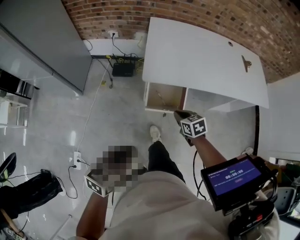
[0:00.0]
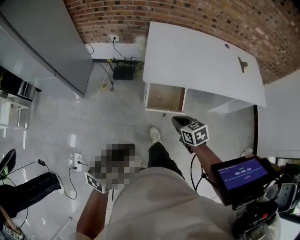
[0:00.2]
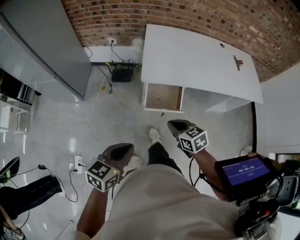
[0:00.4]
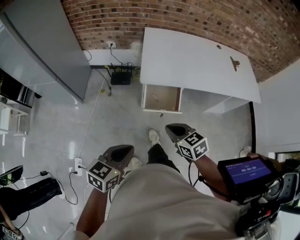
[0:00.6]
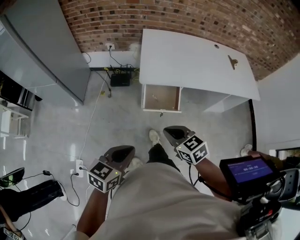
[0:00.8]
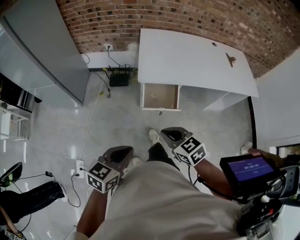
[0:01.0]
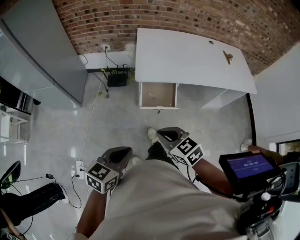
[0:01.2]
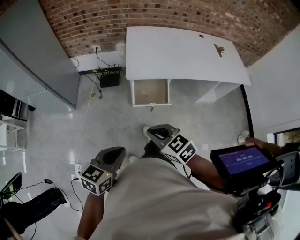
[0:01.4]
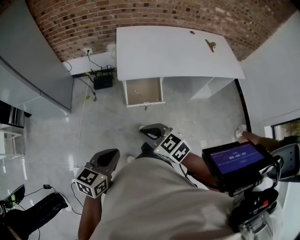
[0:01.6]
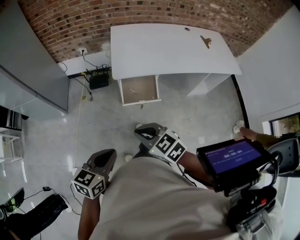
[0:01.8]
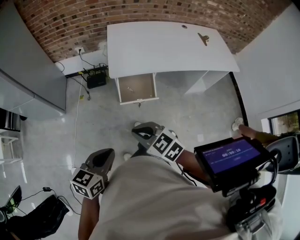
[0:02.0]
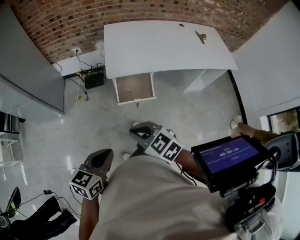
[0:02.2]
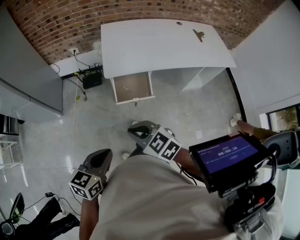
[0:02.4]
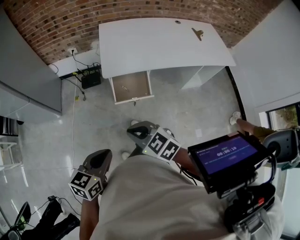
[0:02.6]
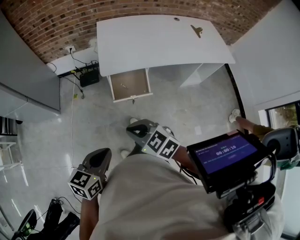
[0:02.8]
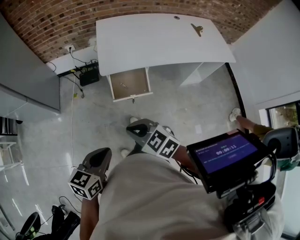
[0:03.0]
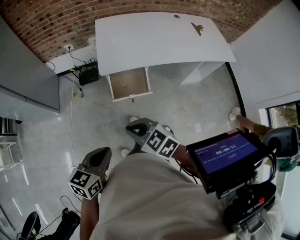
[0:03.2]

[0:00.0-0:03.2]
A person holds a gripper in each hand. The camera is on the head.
0:00.0 to 0:01.6: The left gripper travels backward by approximately 10 cm, while the right gripper moves backward, upward and to the left, approximately 30 cm, and rotates some 20 degrees.
0:01.6 to 0:03.2: The grippers stay close to where they were, moving slightly.

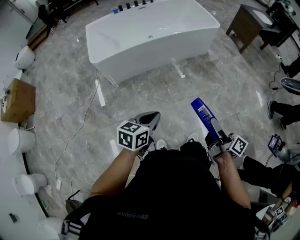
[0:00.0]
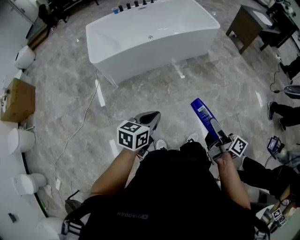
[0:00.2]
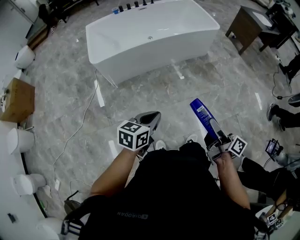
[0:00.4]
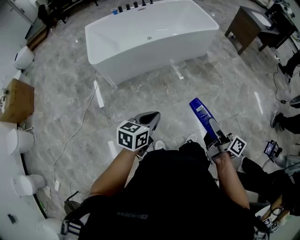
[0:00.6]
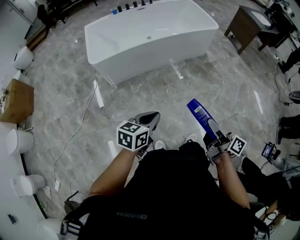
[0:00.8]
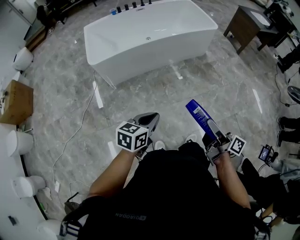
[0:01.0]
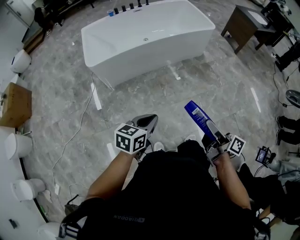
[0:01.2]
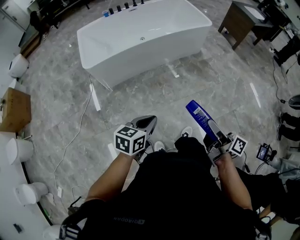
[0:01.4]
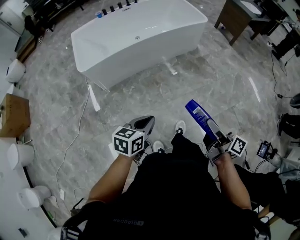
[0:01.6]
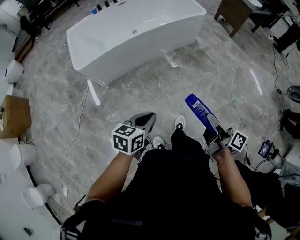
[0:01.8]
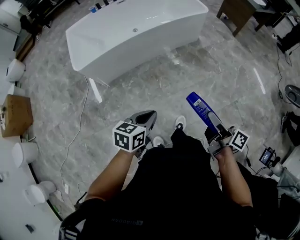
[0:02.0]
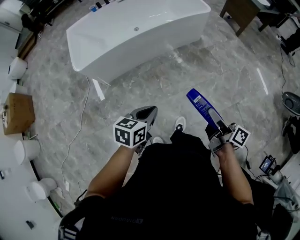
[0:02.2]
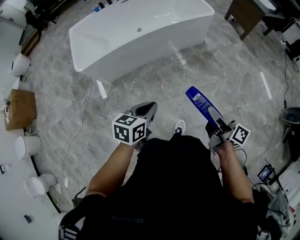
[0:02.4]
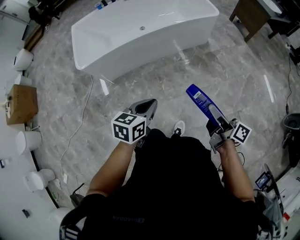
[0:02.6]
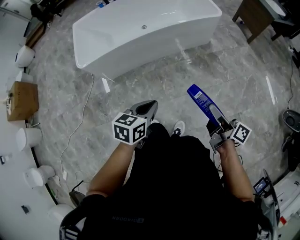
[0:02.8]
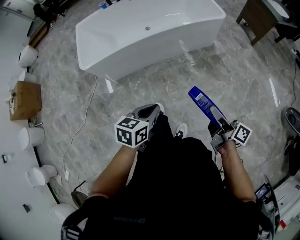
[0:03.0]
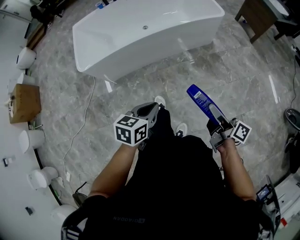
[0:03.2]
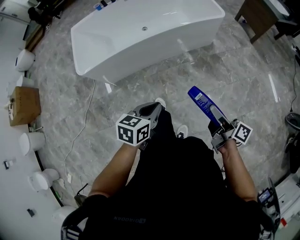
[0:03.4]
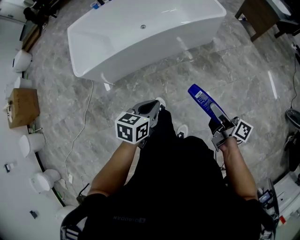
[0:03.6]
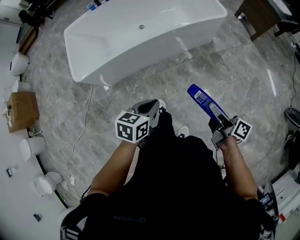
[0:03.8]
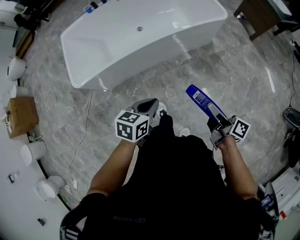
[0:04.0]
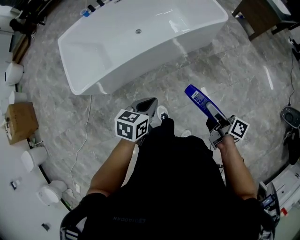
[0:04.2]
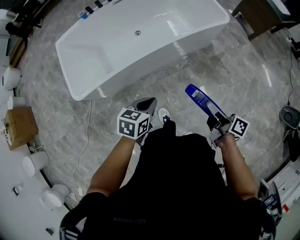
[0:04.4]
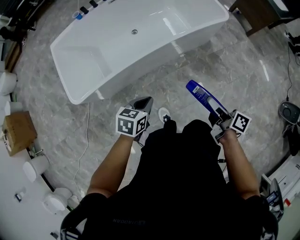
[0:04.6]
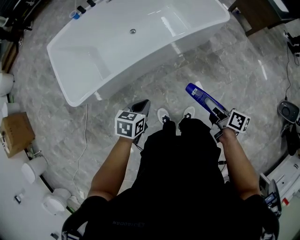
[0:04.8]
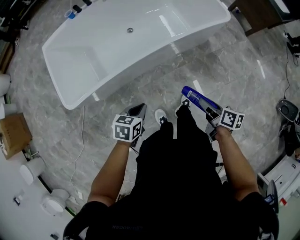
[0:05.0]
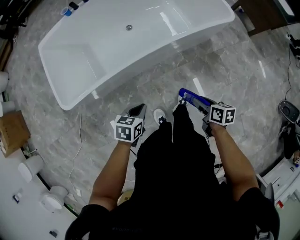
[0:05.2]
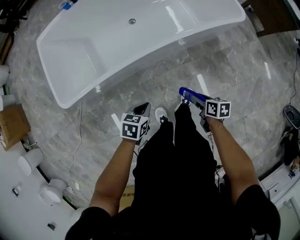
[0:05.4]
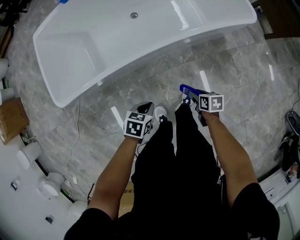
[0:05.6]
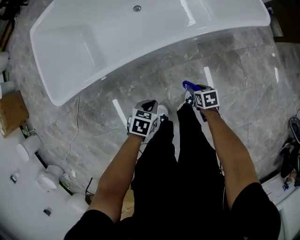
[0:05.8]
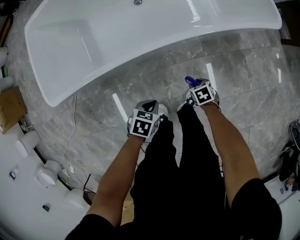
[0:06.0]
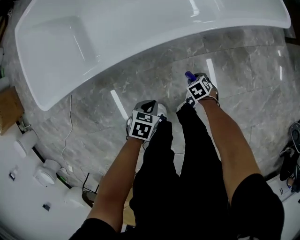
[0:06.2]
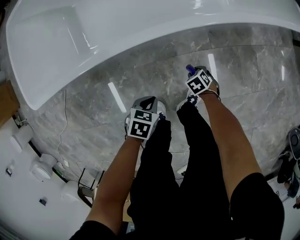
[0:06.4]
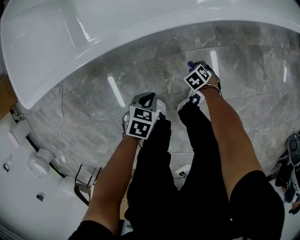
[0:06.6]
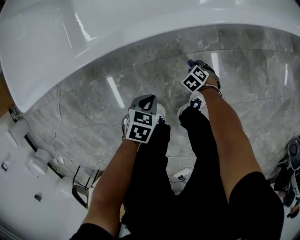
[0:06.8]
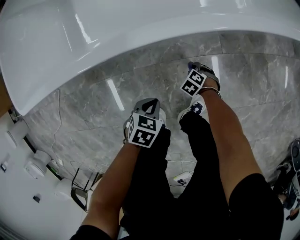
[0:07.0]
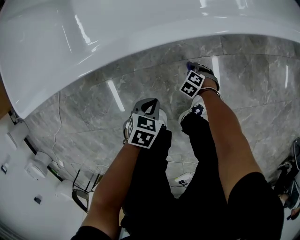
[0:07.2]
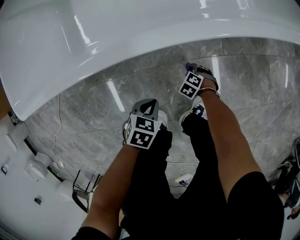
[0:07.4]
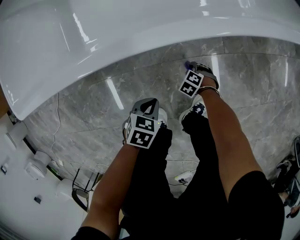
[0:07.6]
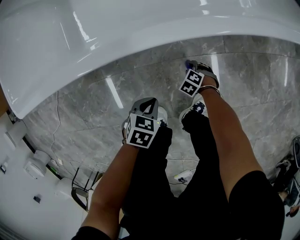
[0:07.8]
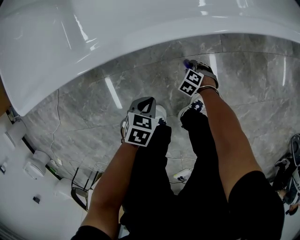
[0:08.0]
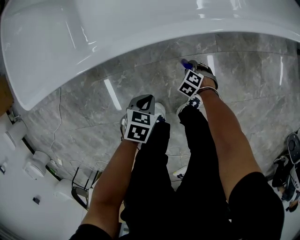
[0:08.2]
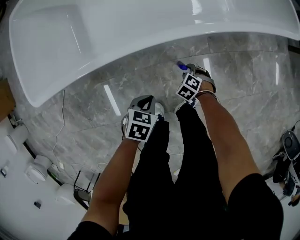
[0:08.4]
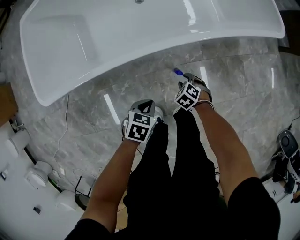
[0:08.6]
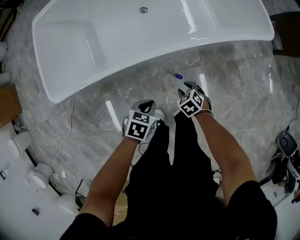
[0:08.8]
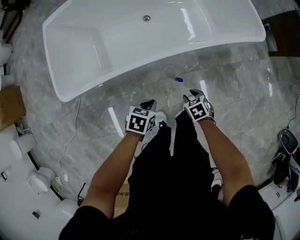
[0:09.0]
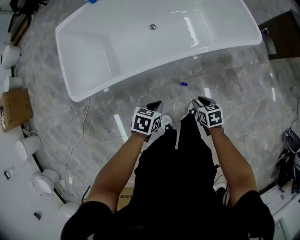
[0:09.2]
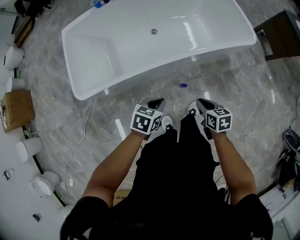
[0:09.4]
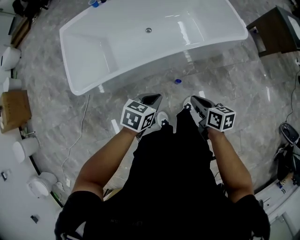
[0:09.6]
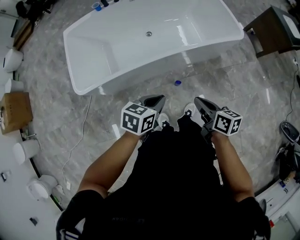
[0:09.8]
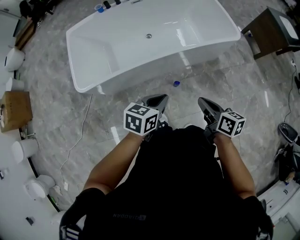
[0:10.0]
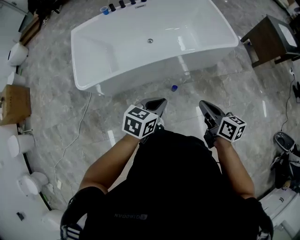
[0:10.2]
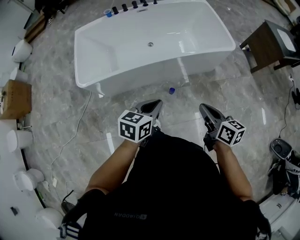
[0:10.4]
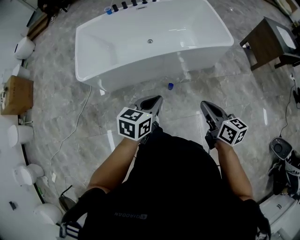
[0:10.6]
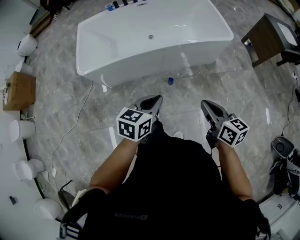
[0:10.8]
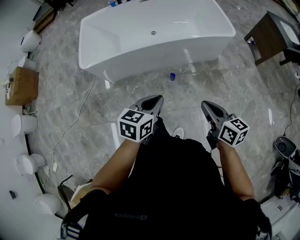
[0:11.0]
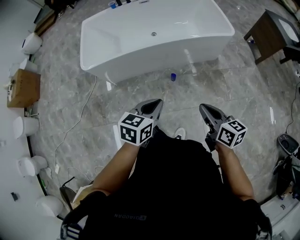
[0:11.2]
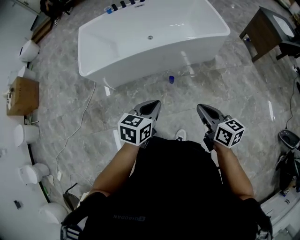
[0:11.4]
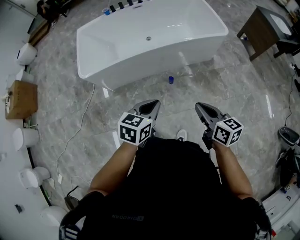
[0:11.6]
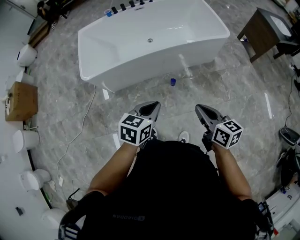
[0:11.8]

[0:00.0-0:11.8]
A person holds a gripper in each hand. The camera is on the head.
0:00.0 to 0:01.4: There are only small adjustments of the grippers.
0:01.4 to 0:03.0: Both grippers travel together forward and to the right, about 25 cm.
0:03.0 to 0:04.4: Both grippers move forward and to the left, roughly 25 cm.
0:04.4 to 0:06.0: Both grippers travel together downward, about 40 cm. The right gripper points its fingers approximately 60 degrees further downward. Meanwhile the left gripper turns by roughly 20 degrees.
0:06.0 to 0:07.4: Both grippers travel together downward, some 25 cm. The right gripper rotates around the line of its fingers by some 50 degrees, counterclockwise from behind.
0:07.4 to 0:08.8: Both grippers move upward, about 30 cm. The right gripper turns by about 30 degrees.
0:08.8 to 0:10.4: The two grippers go some 50 cm upward and backward. The right gripper tilts its fingers roughly 50 degrees upward, and closes. Meanwhile the left gripper angles its fingers upward, by about 30 degrees.
0:10.4 to 0:11.8: Both grippers travel together backward, approximately 15 cm.

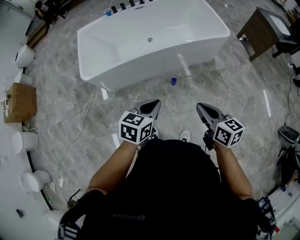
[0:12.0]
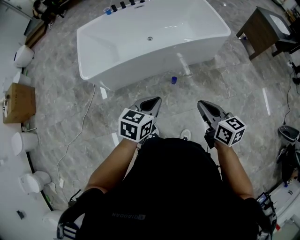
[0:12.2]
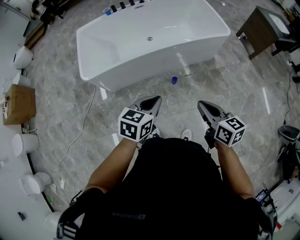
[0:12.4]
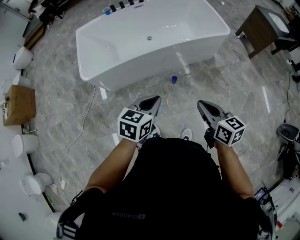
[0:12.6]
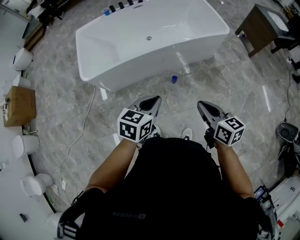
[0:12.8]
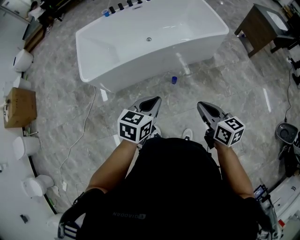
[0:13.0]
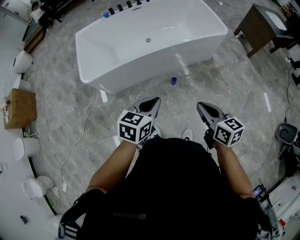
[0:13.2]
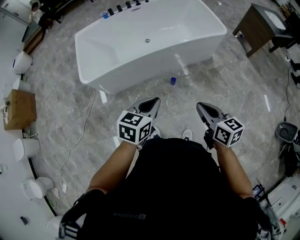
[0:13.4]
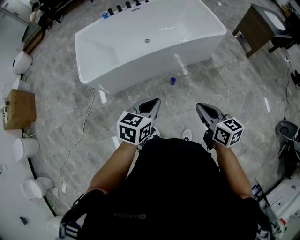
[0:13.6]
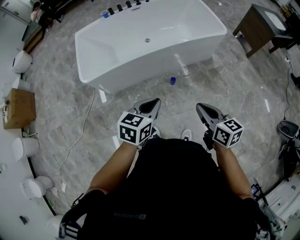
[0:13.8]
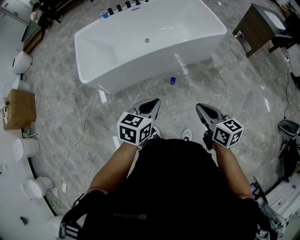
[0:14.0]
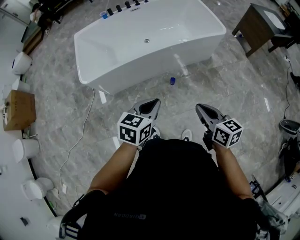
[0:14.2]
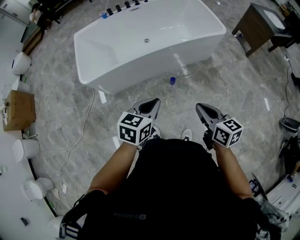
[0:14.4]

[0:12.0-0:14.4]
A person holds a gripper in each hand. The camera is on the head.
0:12.0 to 0:13.2: The grippers make only small movements.
0:13.2 to 0:14.4: Neither gripper changes place.

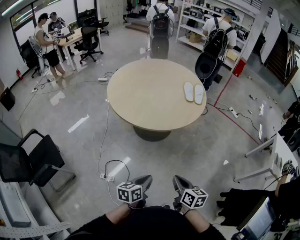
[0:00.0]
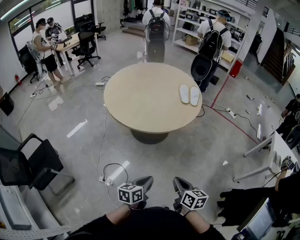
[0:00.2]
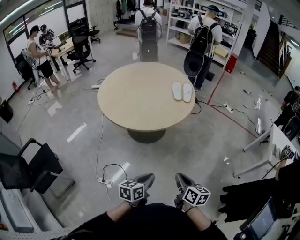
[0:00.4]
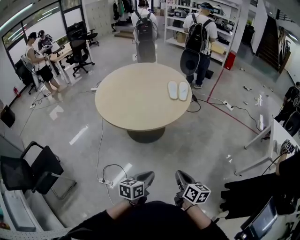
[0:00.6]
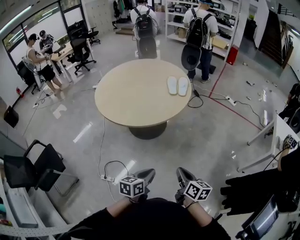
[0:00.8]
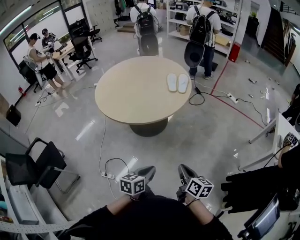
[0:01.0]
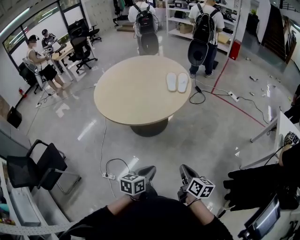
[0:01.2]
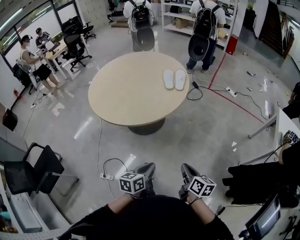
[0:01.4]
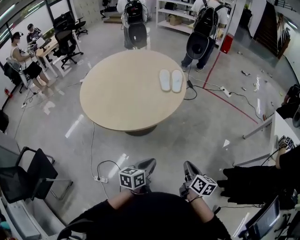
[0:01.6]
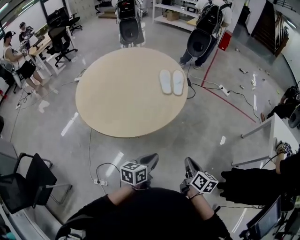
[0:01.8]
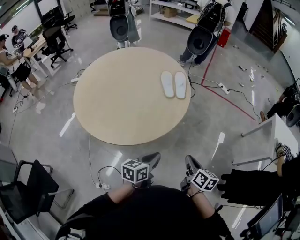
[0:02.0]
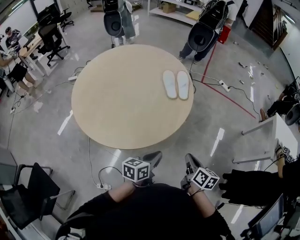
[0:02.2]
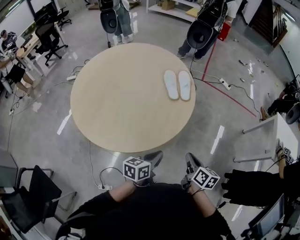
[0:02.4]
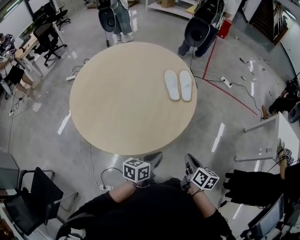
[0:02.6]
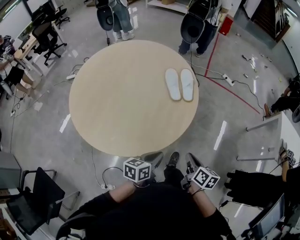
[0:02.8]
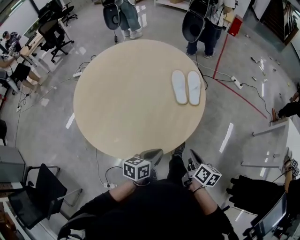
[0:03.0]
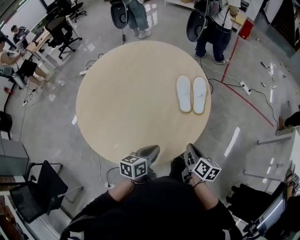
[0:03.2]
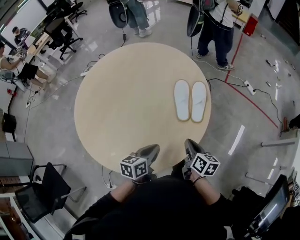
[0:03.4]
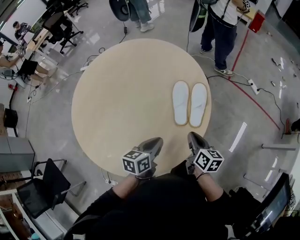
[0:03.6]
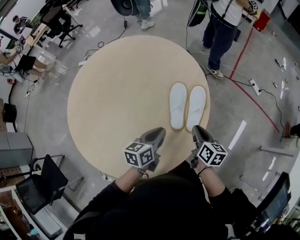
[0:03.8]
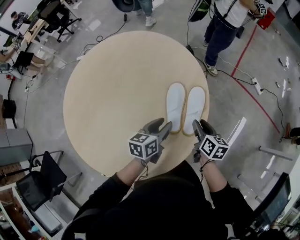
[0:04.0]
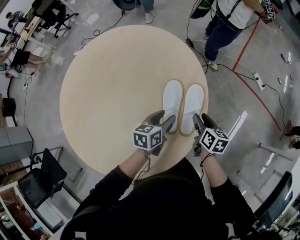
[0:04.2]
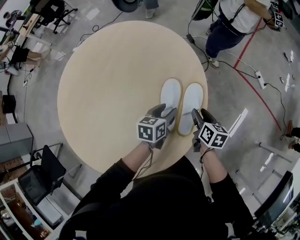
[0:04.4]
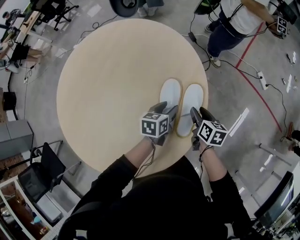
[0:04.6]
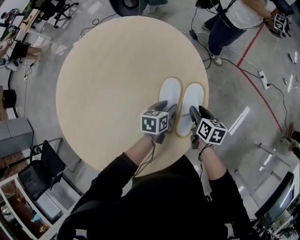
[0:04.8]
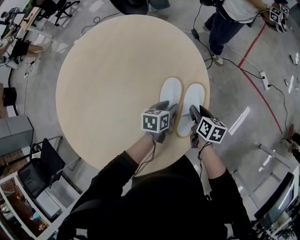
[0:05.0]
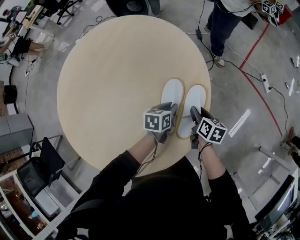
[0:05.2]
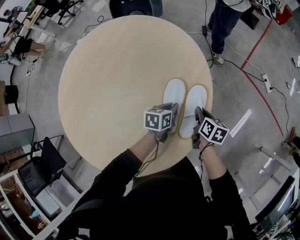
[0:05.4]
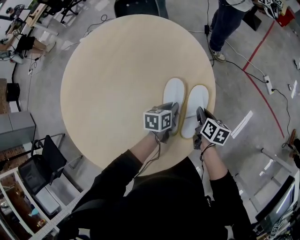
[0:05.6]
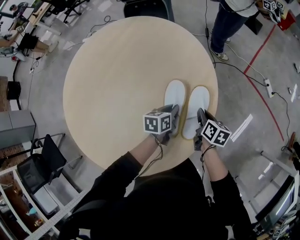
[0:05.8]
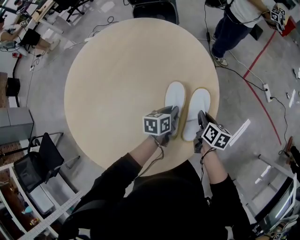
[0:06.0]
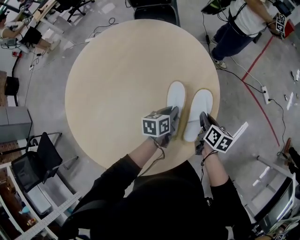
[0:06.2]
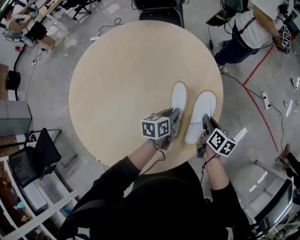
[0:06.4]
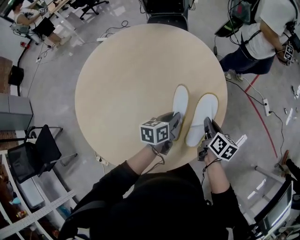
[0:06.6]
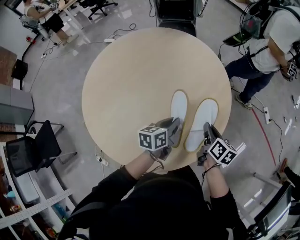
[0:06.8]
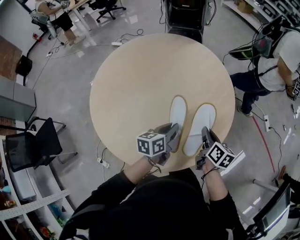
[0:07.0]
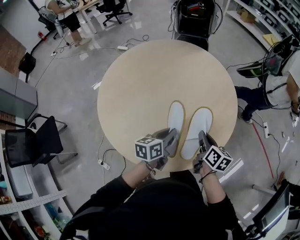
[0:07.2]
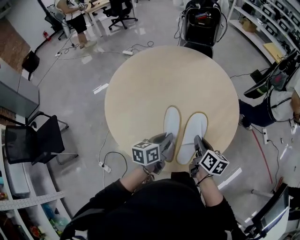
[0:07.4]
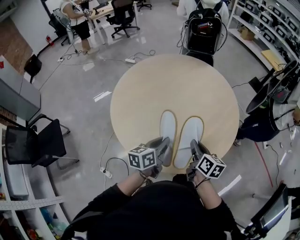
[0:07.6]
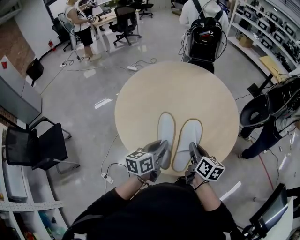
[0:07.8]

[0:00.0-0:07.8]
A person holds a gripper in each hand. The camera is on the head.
0:00.0 to 0:01.6: Both grippers move to the right and forward, about 25 cm. The right gripper rotates roughly 20 degrees.
0:01.6 to 0:03.2: Both grippers move forward and to the left, roughly 40 cm.
0:03.2 to 0:04.6: Both grippers are carried forward, approximately 40 cm. The left gripper opens. Meanwhile the right gripper turns by roughly 20 degrees, and opens up.
0:04.6 to 0:06.2: The left gripper shifts roughly 5 cm to the left, and closes up. The right gripper moves about 5 cm, and closes.
0:06.2 to 0:07.8: The pair of grippers is taken to the left and backward, roughly 40 cm. Both grippers travel together upward, about 20 cm. The left gripper rotates approximately 30 degrees; the right gripper rotates some 20 degrees.
